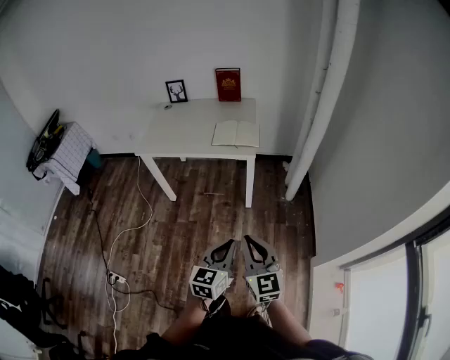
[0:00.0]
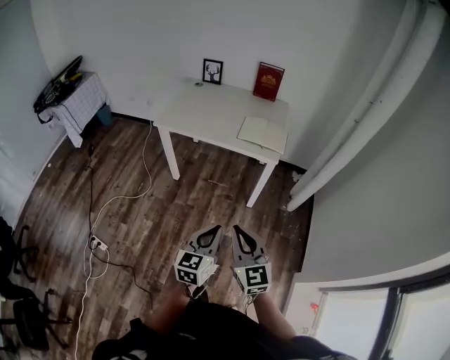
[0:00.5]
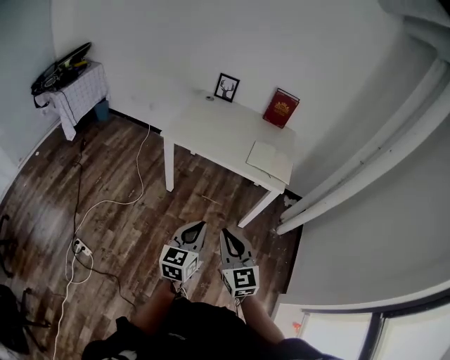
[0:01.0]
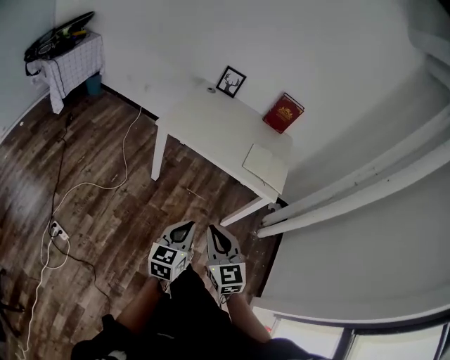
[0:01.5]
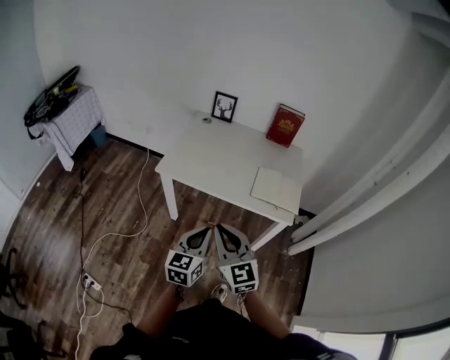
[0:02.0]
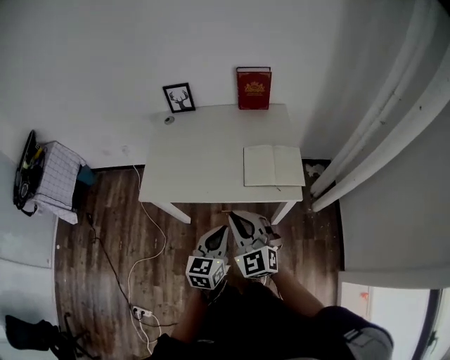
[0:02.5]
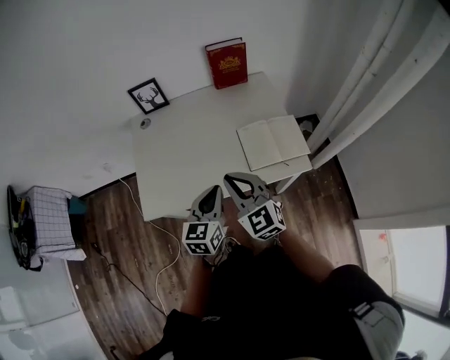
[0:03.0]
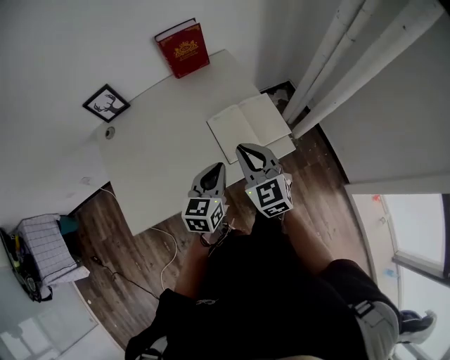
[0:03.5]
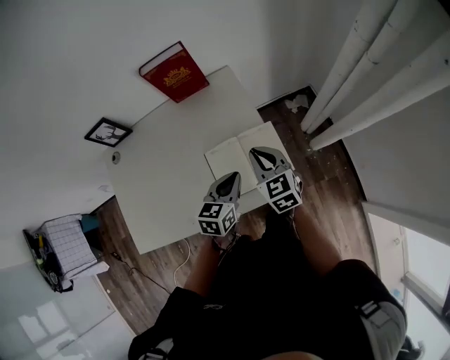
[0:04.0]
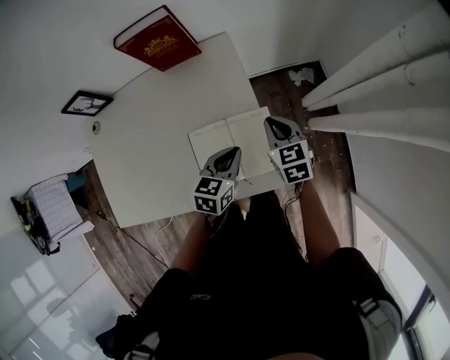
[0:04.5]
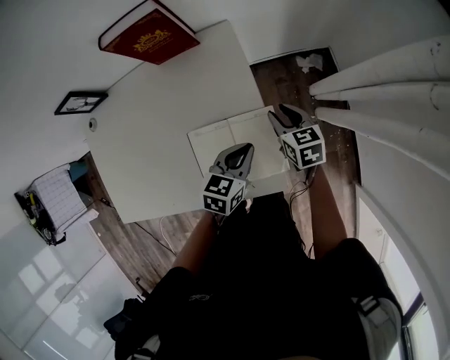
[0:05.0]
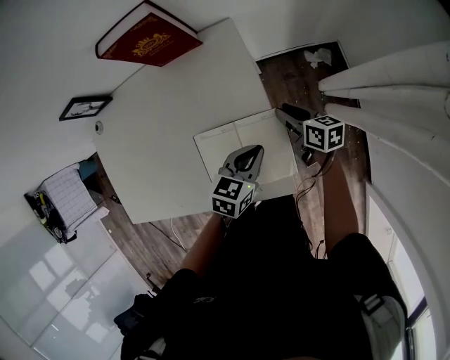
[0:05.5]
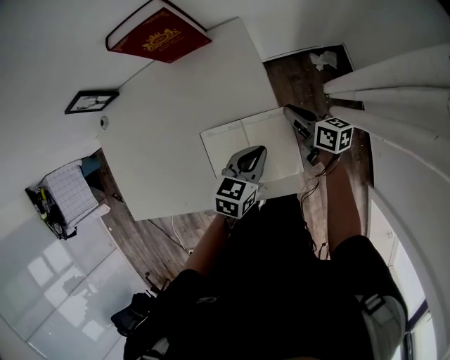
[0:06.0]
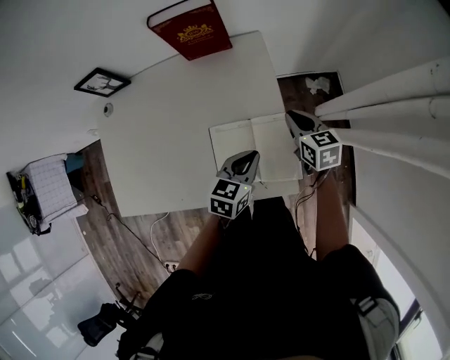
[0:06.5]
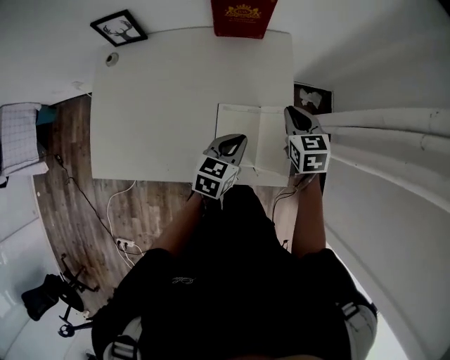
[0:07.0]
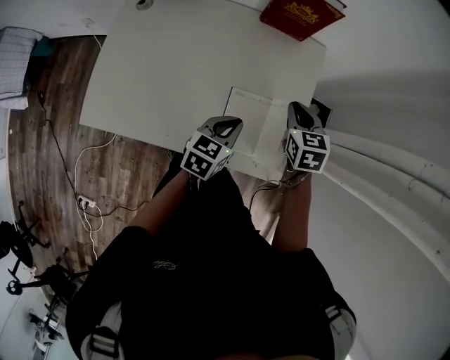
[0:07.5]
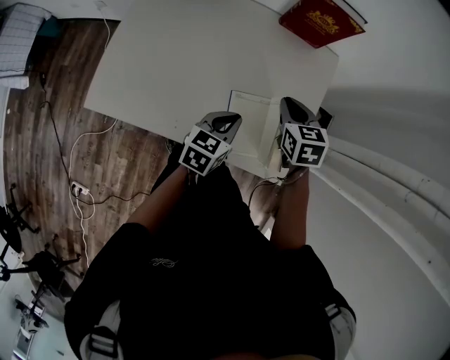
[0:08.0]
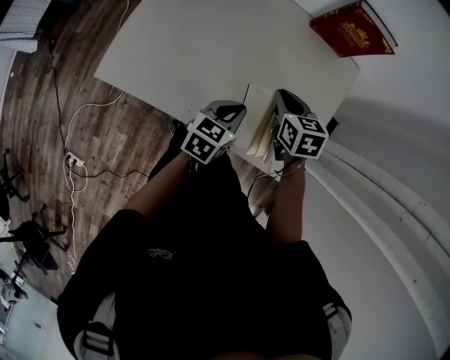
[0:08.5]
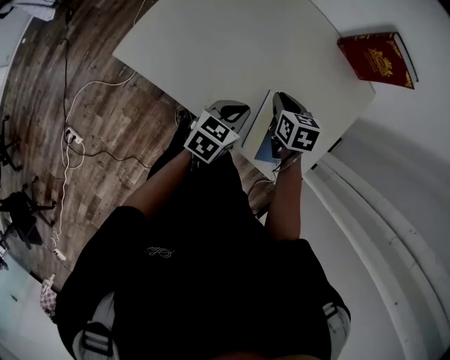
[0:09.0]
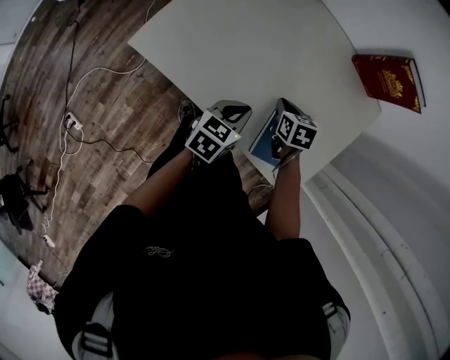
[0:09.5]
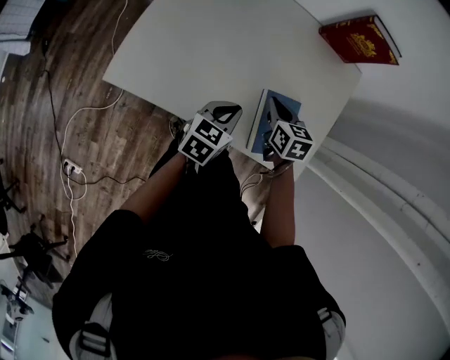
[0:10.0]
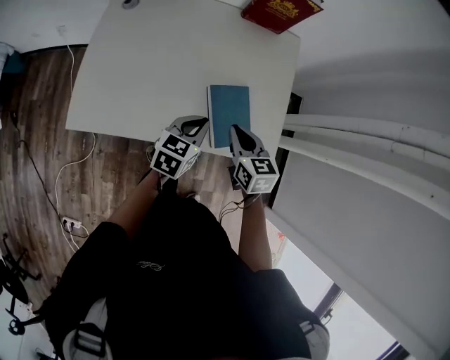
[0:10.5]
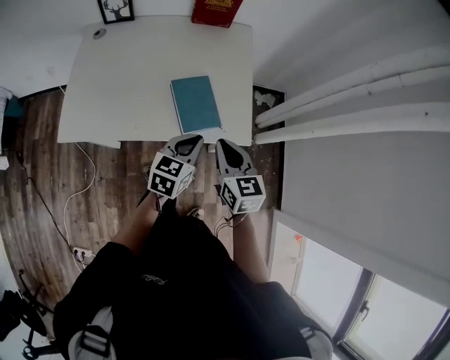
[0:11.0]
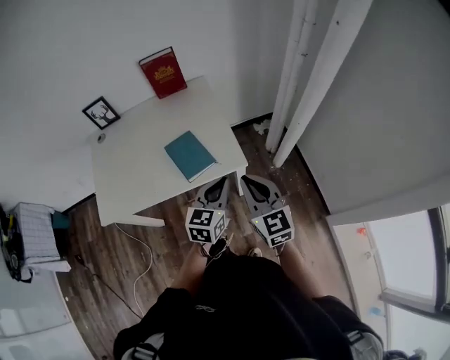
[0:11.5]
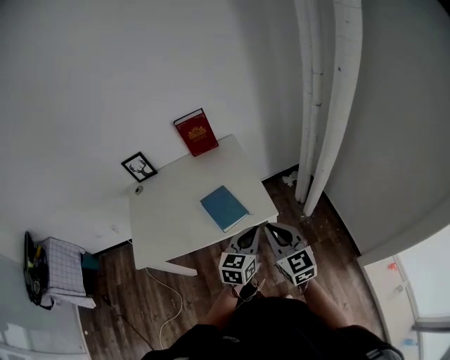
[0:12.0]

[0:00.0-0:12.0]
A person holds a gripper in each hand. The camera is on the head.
0:00.0 to 0:02.0: The two grippers travel together, forward and to the left, about 40 cm.
0:02.0 to 0:04.0: The pair of grippers is taken some 50 cm. The right gripper swivels some 40 degrees. Meanwhile the left gripper turns by roughly 40 degrees.
0:04.0 to 0:06.0: The left gripper goes roughly 15 cm to the right, downward and forward. The right gripper travels downward, forward and to the right by approximately 25 cm, rolls clockwise, seen from behind, by roughly 50 degrees, and opens, then closes again.
0:06.0 to 0:08.0: The left gripper goes about 20 cm to the left, and turns by about 30 degrees; the right gripper travels to the left and upward by roughly 25 cm, and twists some 50 degrees counterclockwise, seen from behind.
0:08.0 to 0:10.0: The left gripper is displaced to the left by some 10 cm; the right gripper heads to the left and downward, covering roughly 15 cm.
0:10.0 to 0:12.0: The right gripper travels backward, to the right and upward by roughly 40 cm, and angles its fingers upward, by approximately 40 degrees, while the left gripper shifts roughly 35 cm to the right and backward, and swivels approximately 30 degrees.

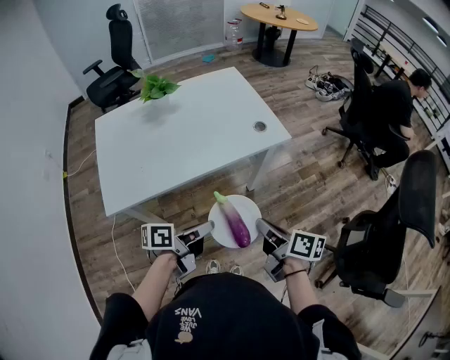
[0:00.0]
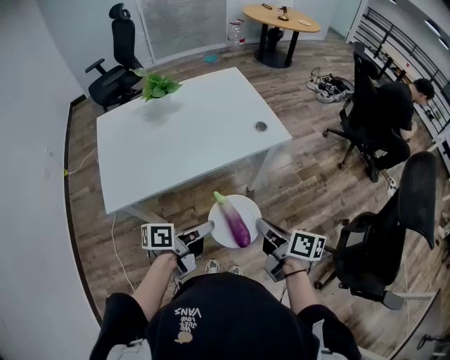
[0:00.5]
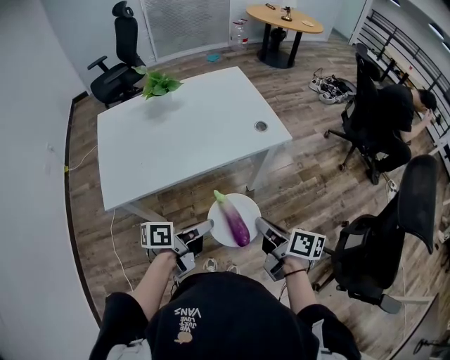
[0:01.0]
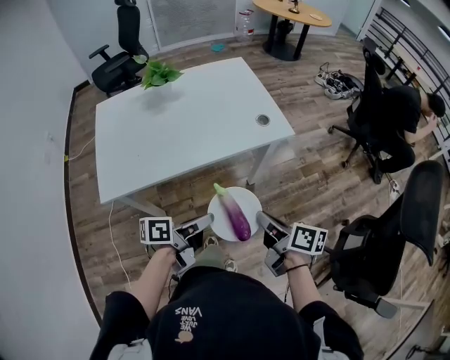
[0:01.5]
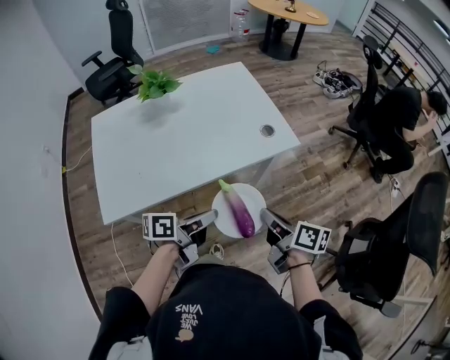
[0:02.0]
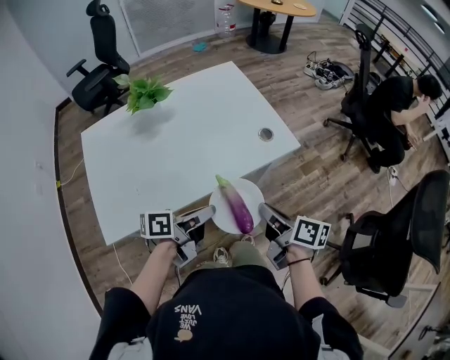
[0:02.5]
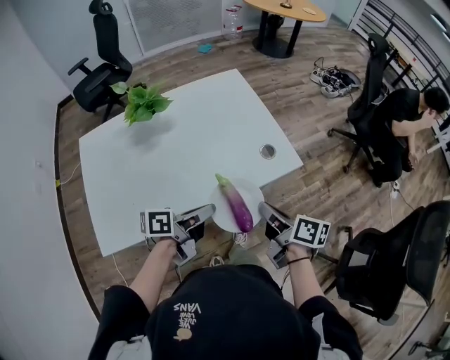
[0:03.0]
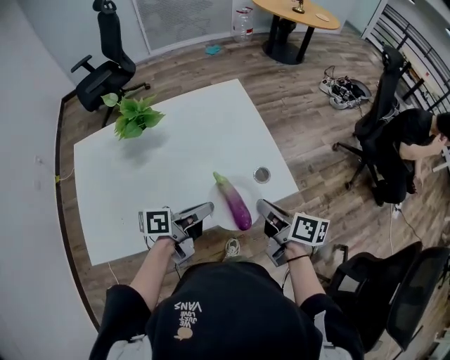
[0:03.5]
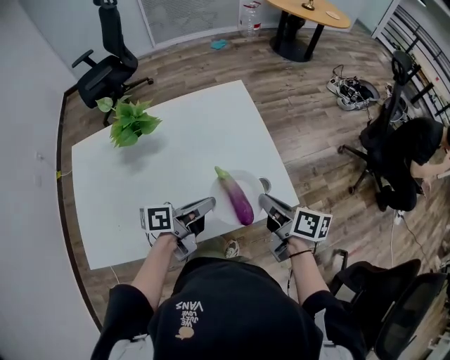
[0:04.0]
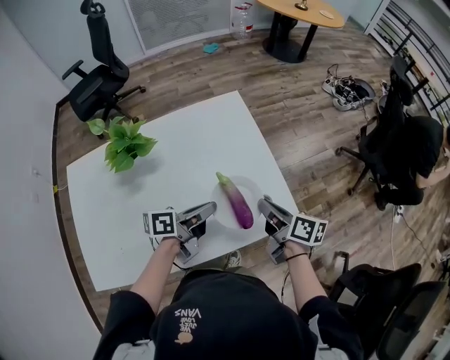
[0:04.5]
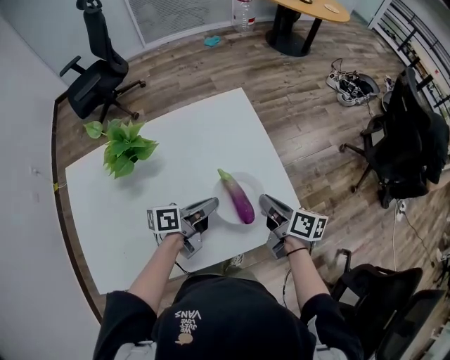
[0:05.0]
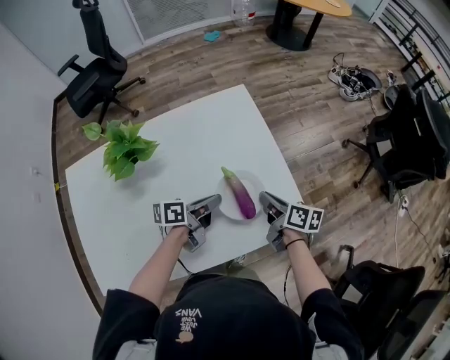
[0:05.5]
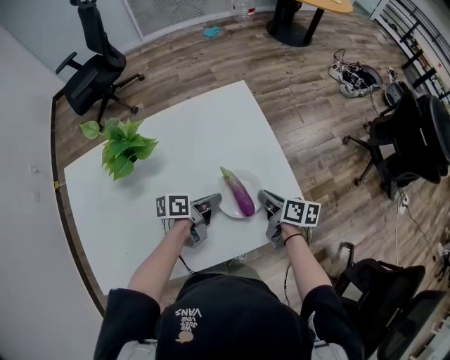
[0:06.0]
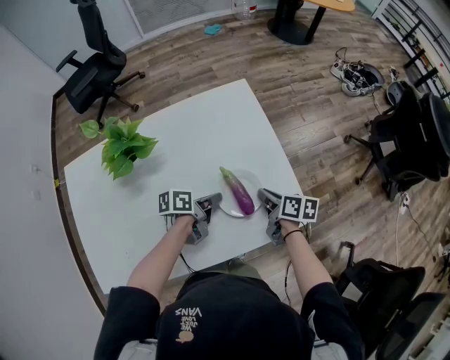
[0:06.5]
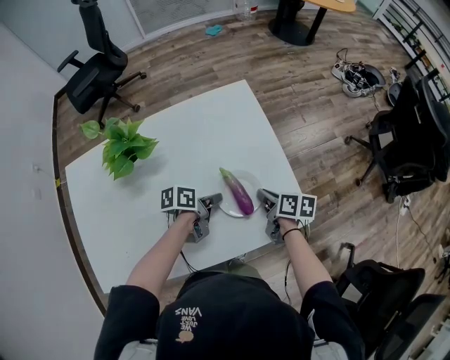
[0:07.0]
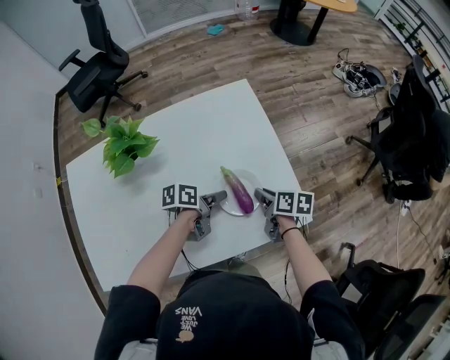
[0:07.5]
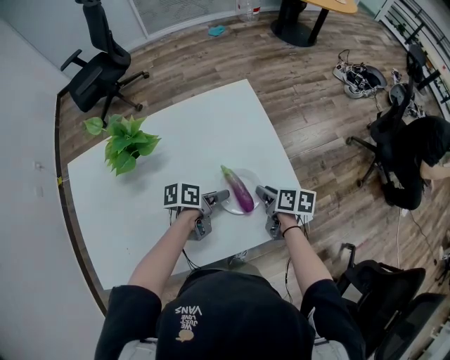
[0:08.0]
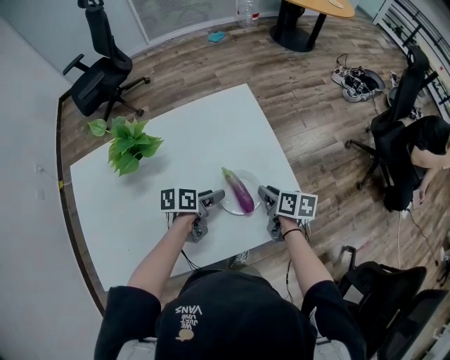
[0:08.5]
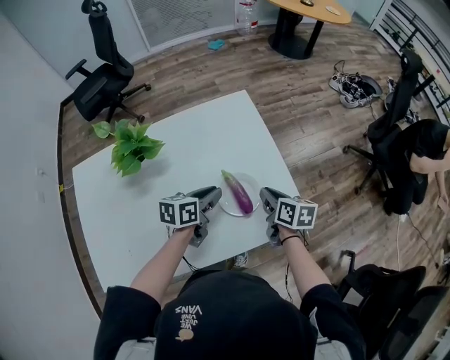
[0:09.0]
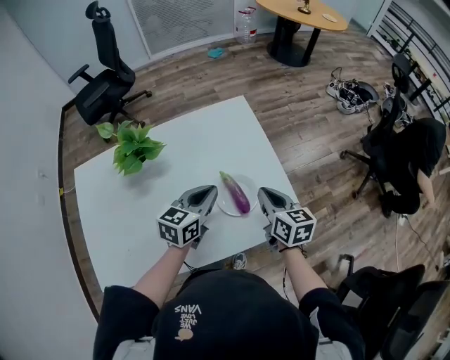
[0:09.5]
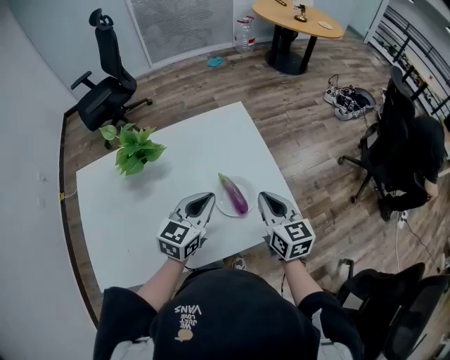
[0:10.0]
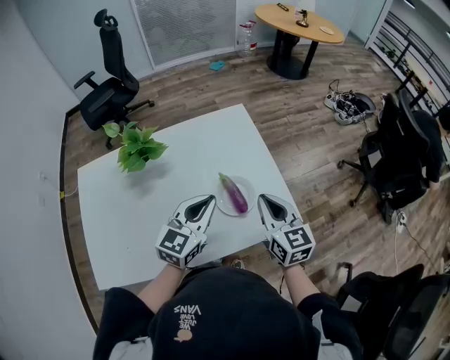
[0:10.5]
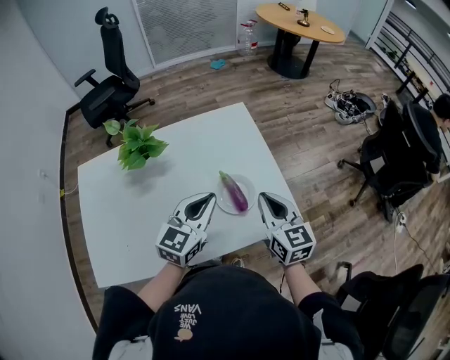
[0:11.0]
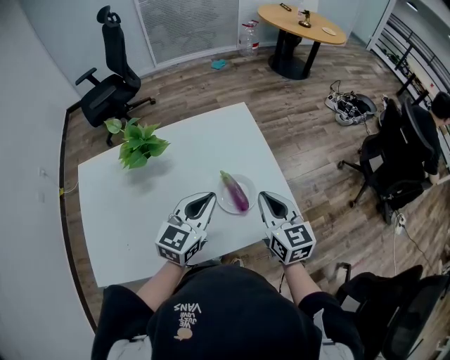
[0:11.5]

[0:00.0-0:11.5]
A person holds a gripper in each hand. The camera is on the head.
0:00.0 to 0:02.0: The two grippers go some 10 cm forward.
0:02.0 to 0:04.0: The two grippers go approximately 30 cm forward.
0:04.0 to 0:06.0: Both grippers travel together downward and forward, approximately 15 cm.
0:06.0 to 0:07.5: The left gripper opens up.
0:07.5 to 0:09.5: Both grippers move upward, some 15 cm. The left gripper rolls clockwise, seen from behind, by approximately 50 degrees, and closes its fingers, while the right gripper rotates about 40 degrees.
0:09.5 to 0:11.5: The left gripper shifts approximately 10 cm upward and backward. Meanwhile the right gripper heads upward, covering about 5 cm, and turns by approximately 20 degrees.

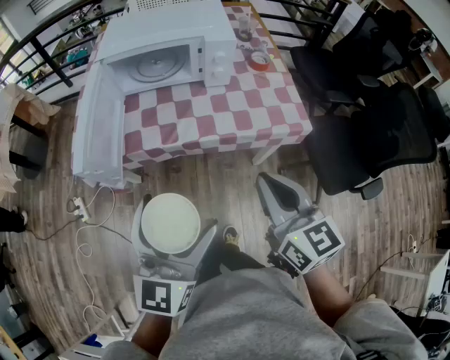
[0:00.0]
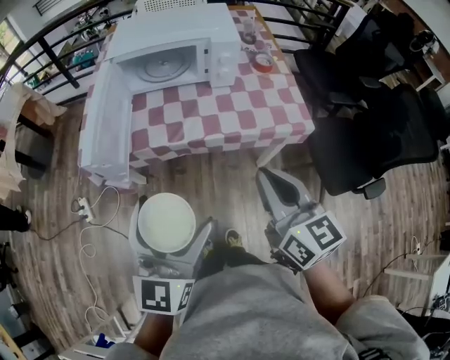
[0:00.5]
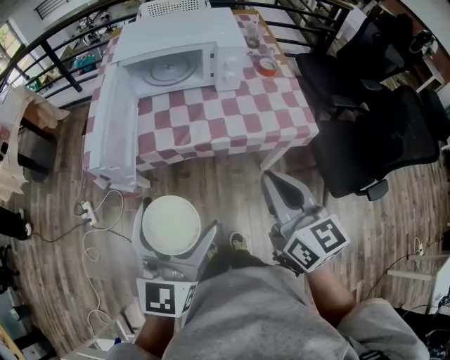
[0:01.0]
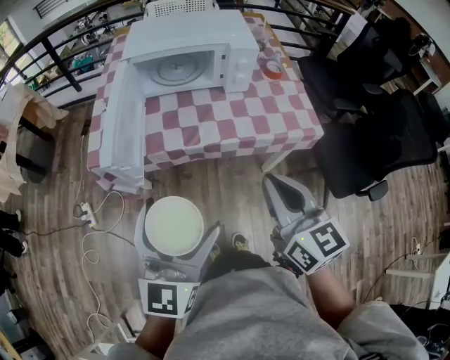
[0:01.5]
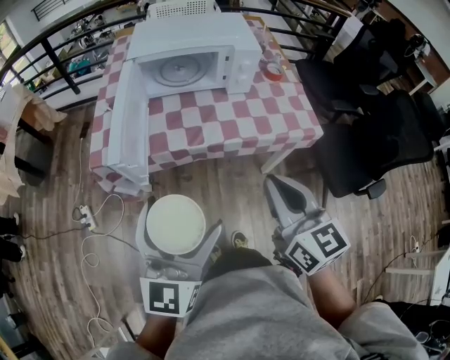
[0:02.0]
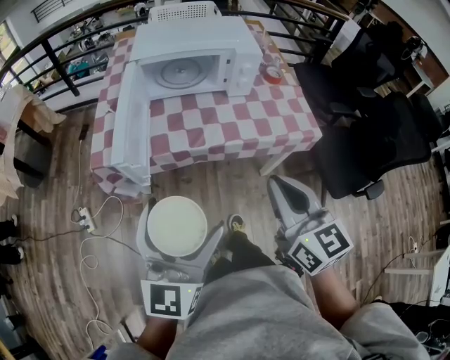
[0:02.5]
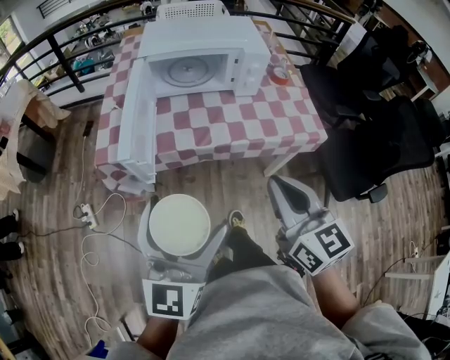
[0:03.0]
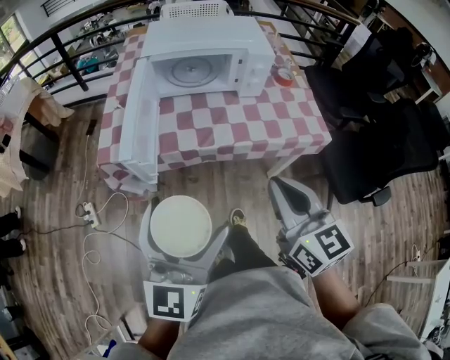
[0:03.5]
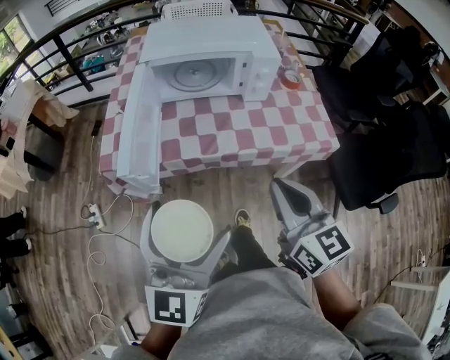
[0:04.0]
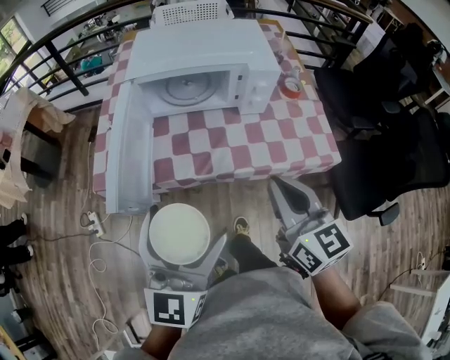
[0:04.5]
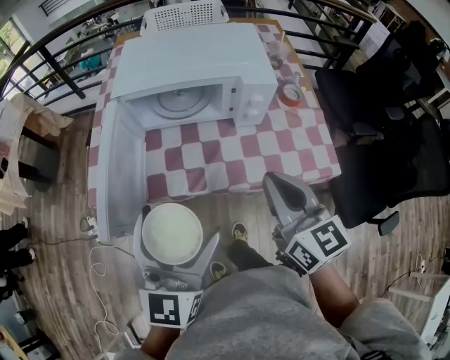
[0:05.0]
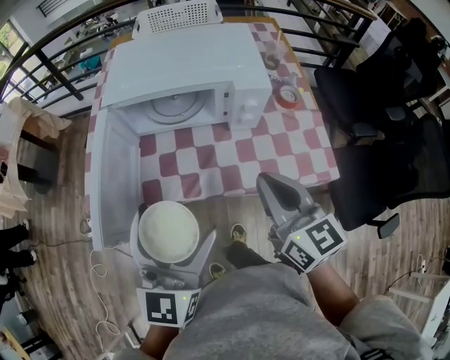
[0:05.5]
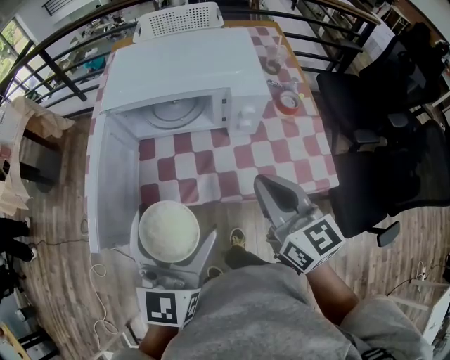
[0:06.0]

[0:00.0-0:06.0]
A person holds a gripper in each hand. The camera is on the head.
0:00.0 to 0:02.0: The grippers both shift to the left by about 10 cm.
0:02.0 to 0:04.0: There are only small adjustments of the grippers.
0:04.0 to 0:06.0: Both grippers travel together forward and to the right, about 20 cm.
